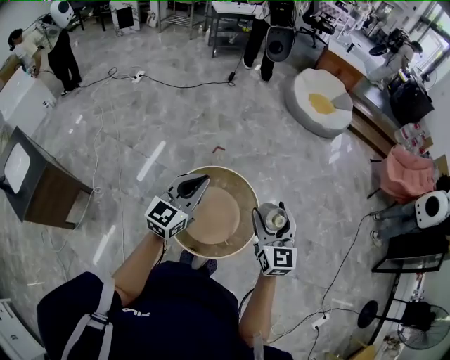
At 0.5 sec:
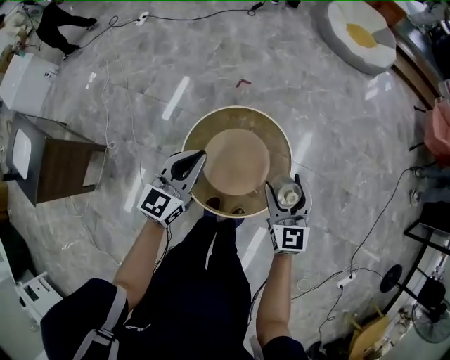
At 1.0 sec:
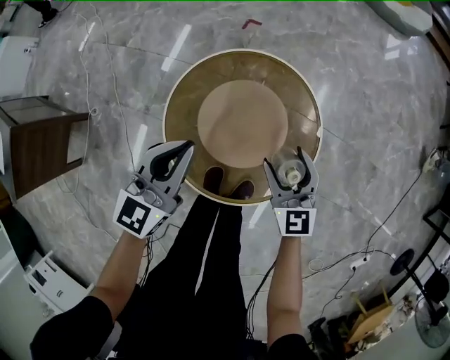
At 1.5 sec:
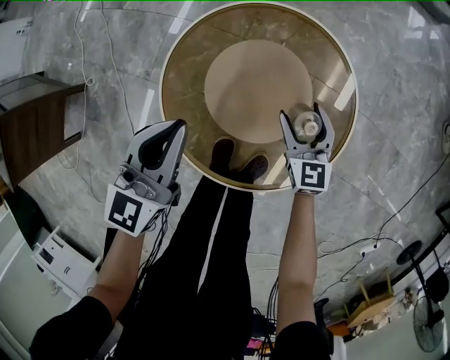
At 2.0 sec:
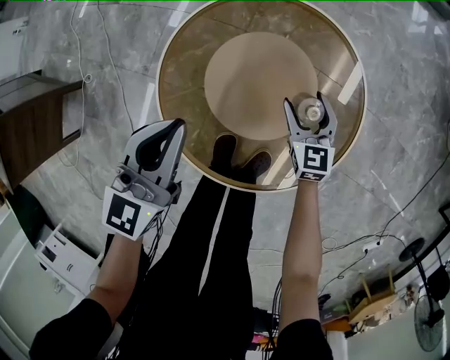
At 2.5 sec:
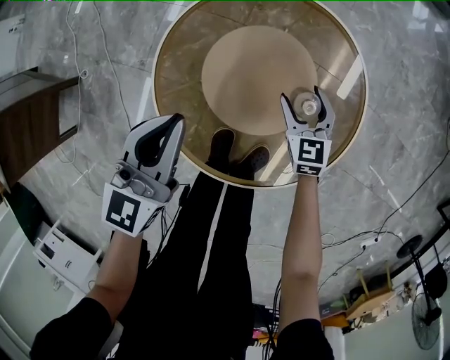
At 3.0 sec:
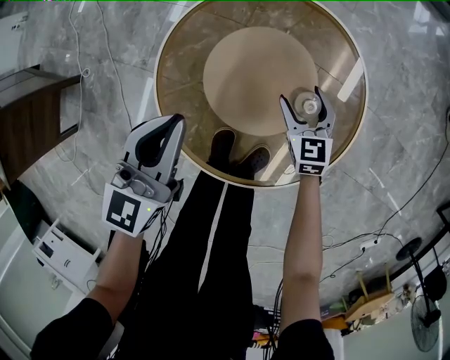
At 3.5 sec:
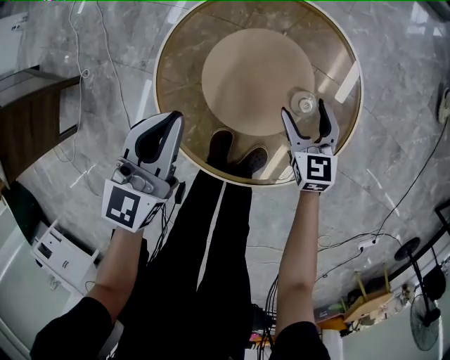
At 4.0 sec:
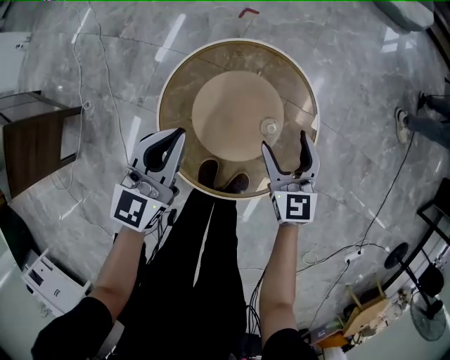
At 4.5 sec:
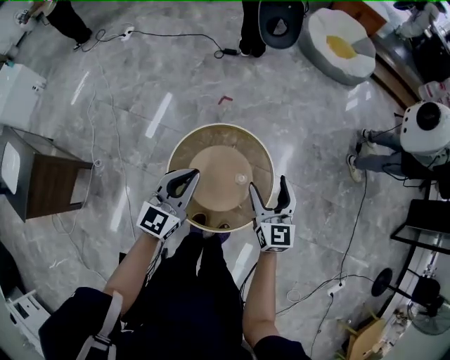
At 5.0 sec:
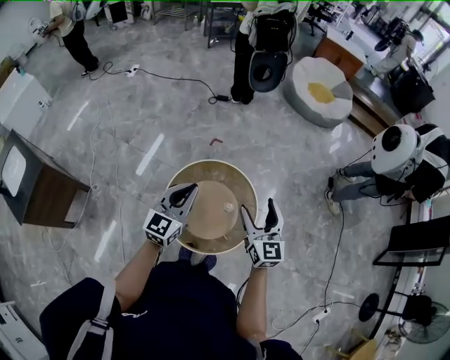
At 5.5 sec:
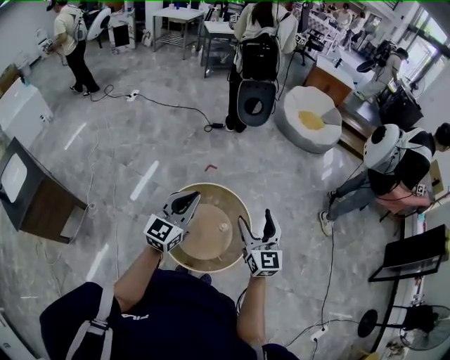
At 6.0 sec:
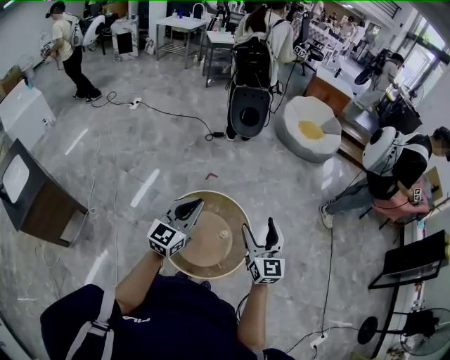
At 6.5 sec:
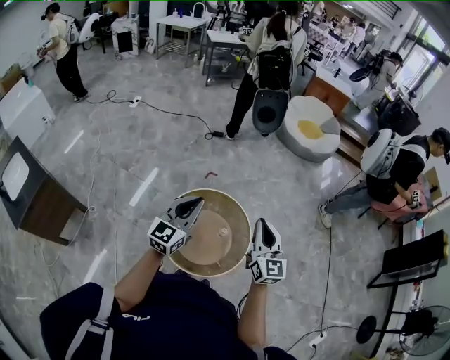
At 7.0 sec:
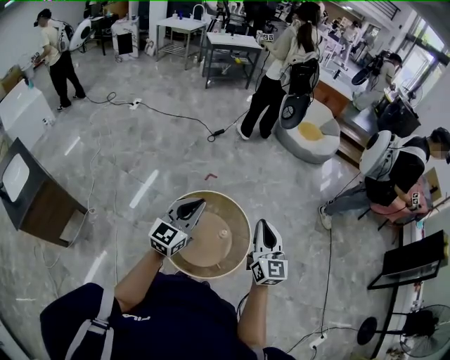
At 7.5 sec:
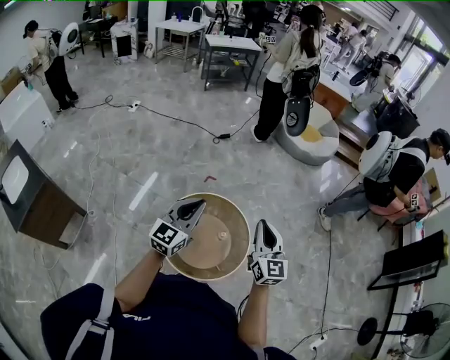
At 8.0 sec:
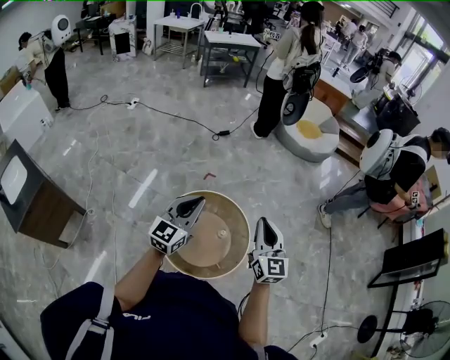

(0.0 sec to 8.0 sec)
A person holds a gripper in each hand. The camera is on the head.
0.0 sec - 2.0 sec: The two grippers go approximately 60 cm downward. The right gripper rotates about 20 degrees.
2.0 sec - 4.0 sec: The right gripper heads upward, covering approximately 20 cm; the left gripper heads upward, covering some 10 cm.
4.0 sec - 6.0 sec: The two grippers go roughly 40 cm upward. The right gripper swivels some 20 degrees.
6.0 sec - 8.0 sec: The right gripper closes up.

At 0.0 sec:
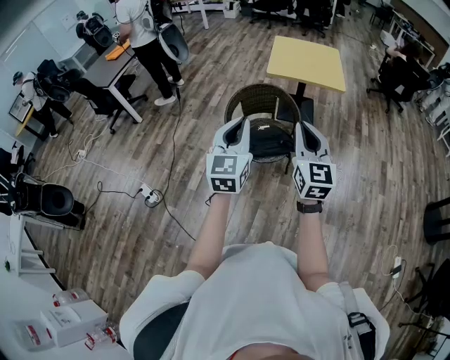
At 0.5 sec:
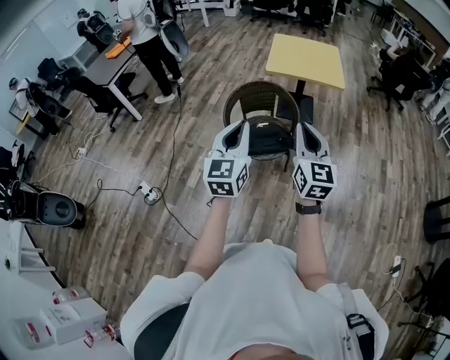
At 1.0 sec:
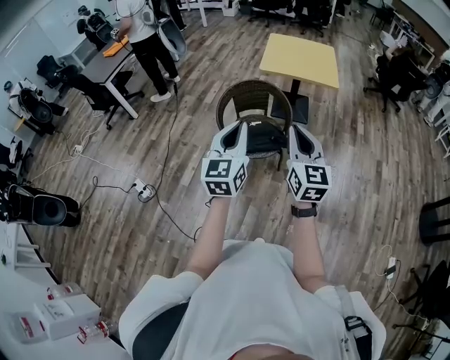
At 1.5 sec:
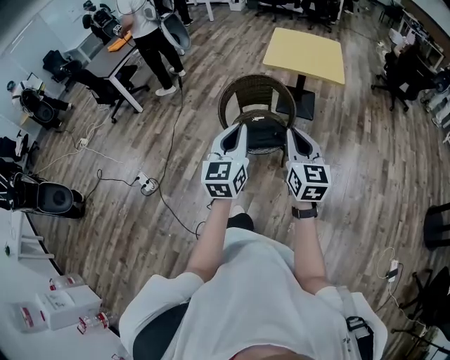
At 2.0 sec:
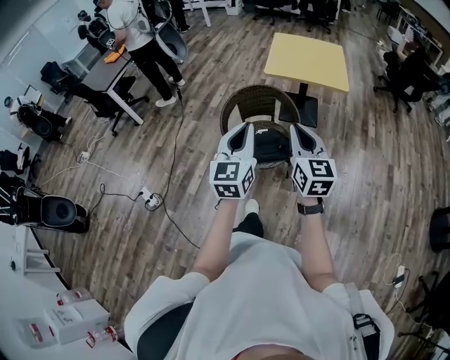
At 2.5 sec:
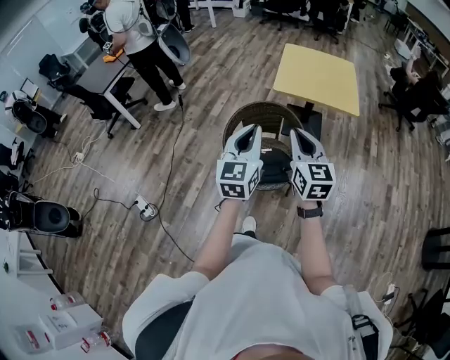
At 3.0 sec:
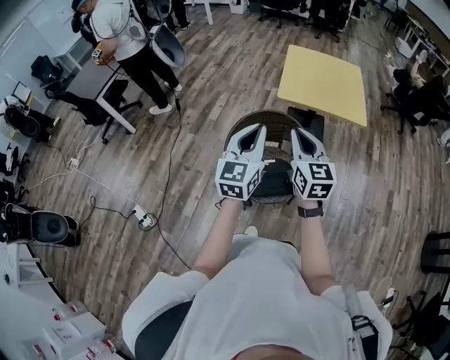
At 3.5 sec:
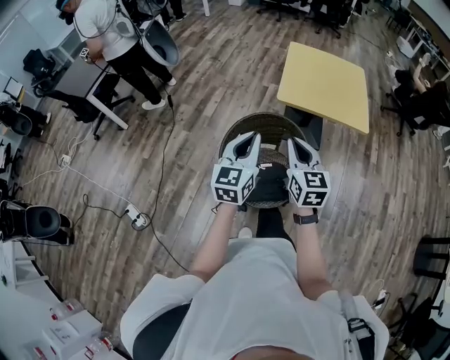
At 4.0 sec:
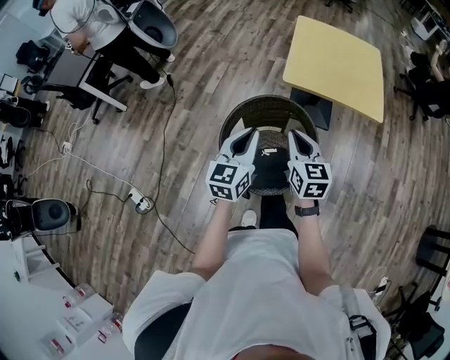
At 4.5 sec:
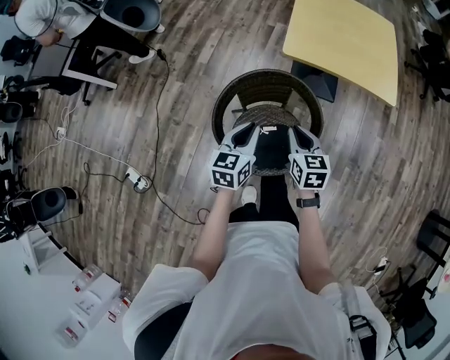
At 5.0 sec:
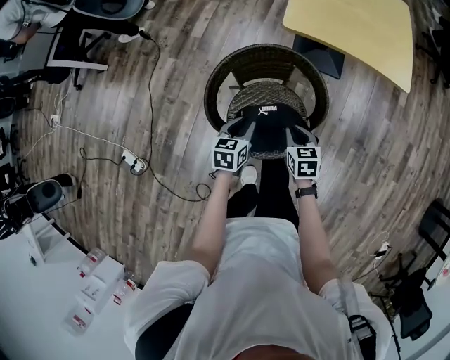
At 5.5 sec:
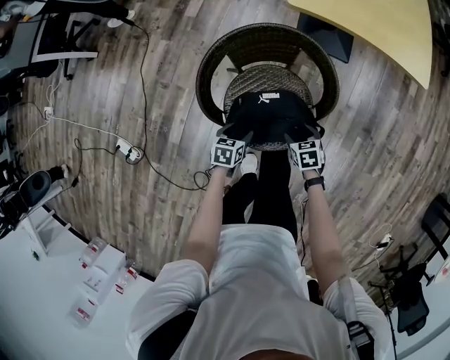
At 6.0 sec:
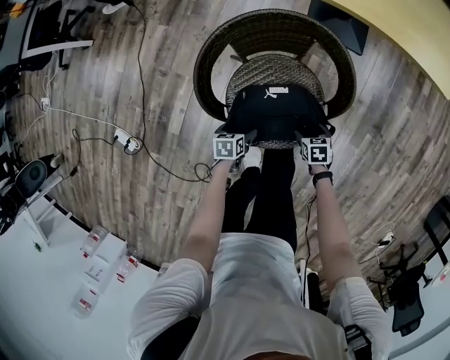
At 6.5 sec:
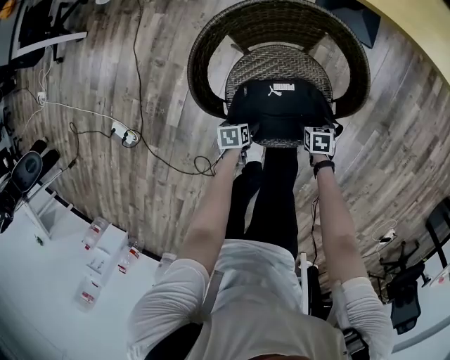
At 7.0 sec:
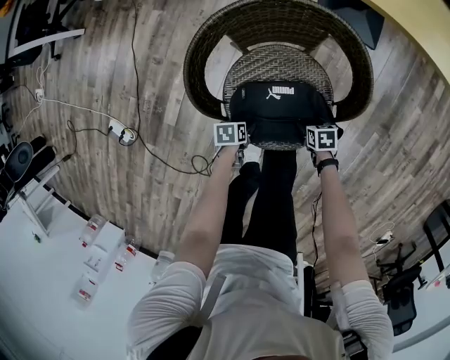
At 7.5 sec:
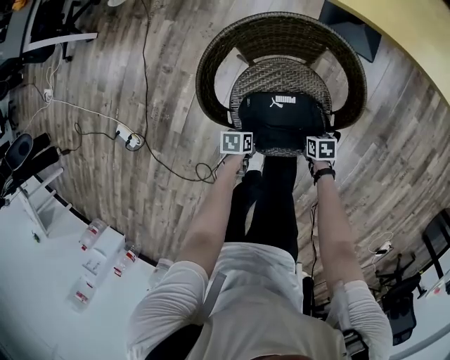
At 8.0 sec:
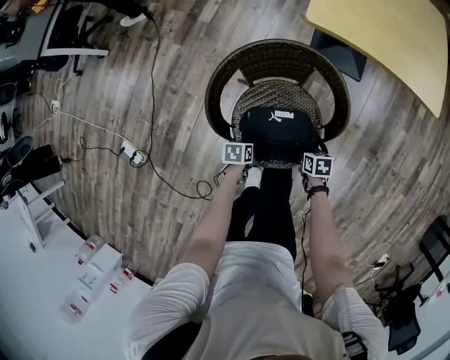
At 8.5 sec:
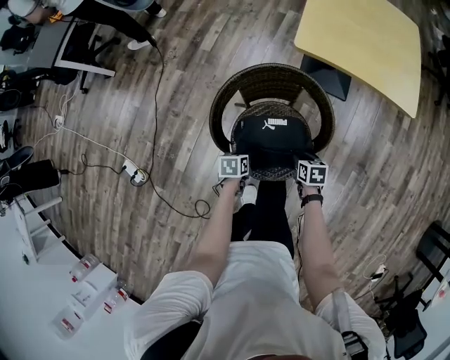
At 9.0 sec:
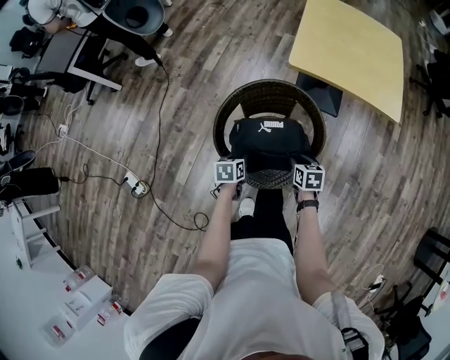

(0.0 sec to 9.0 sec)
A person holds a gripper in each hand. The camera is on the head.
0.0 sec - 2.0 sec: The right gripper travels forward and downward by roughly 10 cm, while the left gripper goes about 10 cm forward and to the right.
2.0 sec - 4.5 sec: Both grippers move forward and downward, about 50 cm. The left gripper changes its angle by about 30 degrees. The right gripper tilts its fingers some 30 degrees downward.
4.5 sec - 7.0 sec: Both grippers travel together downward, approximately 50 cm. The left gripper tilts its fingers some 40 degrees downward, and opens up. The right gripper tilts its fingers approximately 40 degrees downward, and opens its fingers.
7.0 sec - 9.0 sec: Both grippers travel together upward, roughly 30 cm. The left gripper turns by approximately 30 degrees, and closes. The right gripper rotates about 30 degrees, and closes its fingers.

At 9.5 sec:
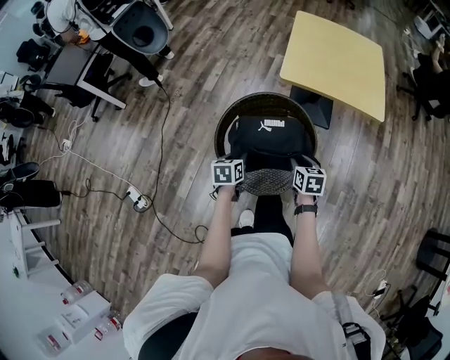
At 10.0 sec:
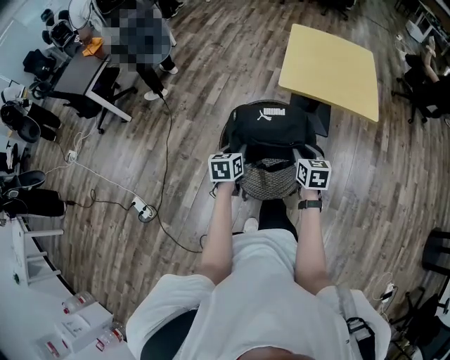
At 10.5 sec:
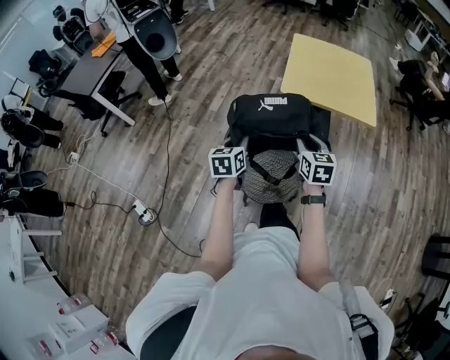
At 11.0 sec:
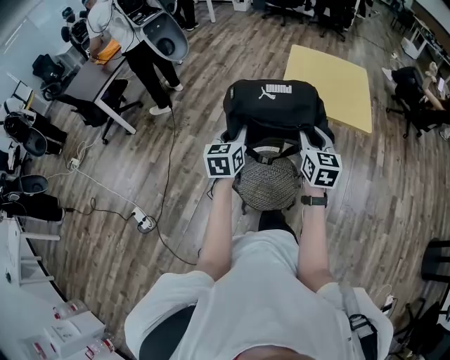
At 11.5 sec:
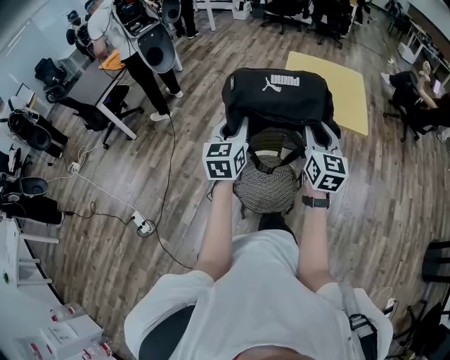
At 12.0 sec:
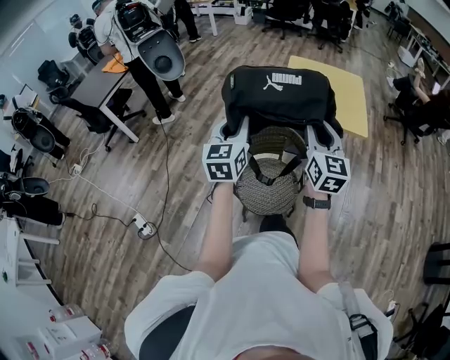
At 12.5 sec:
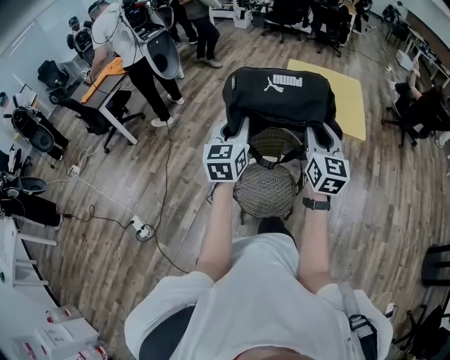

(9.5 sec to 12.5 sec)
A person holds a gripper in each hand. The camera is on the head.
9.5 sec - 11.0 sec: The two grippers go about 25 cm upward. The left gripper rotates roughly 30 degrees, while the right gripper points its fingers some 30 degrees further upward.
11.0 sec - 12.5 sec: The grippers both shift upward by about 10 cm.

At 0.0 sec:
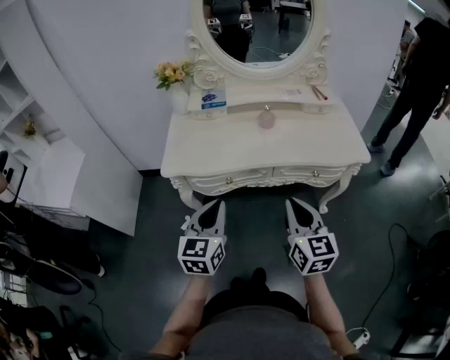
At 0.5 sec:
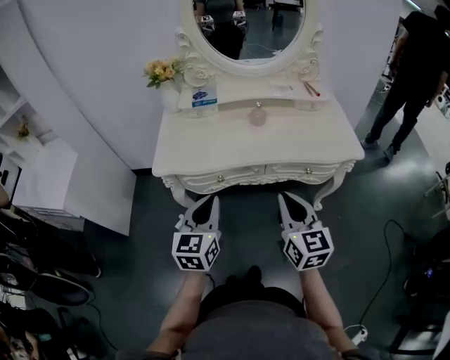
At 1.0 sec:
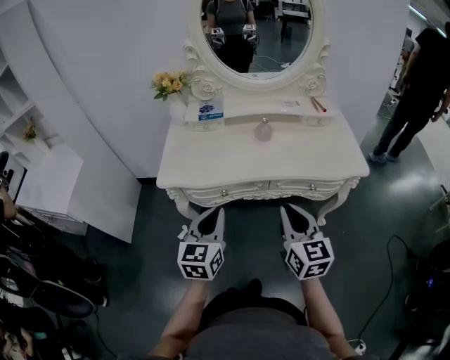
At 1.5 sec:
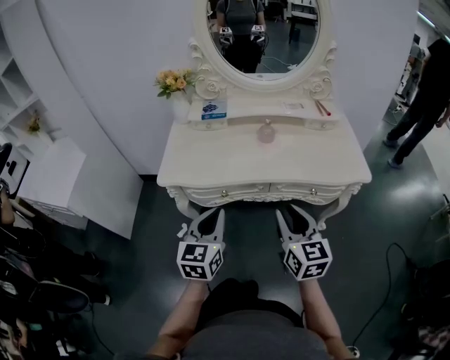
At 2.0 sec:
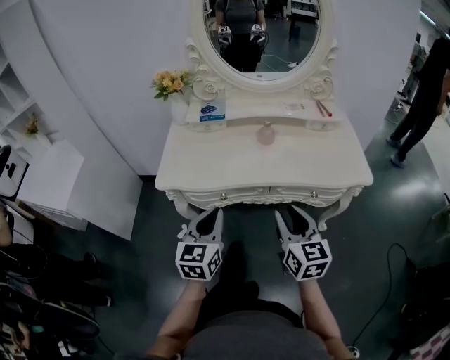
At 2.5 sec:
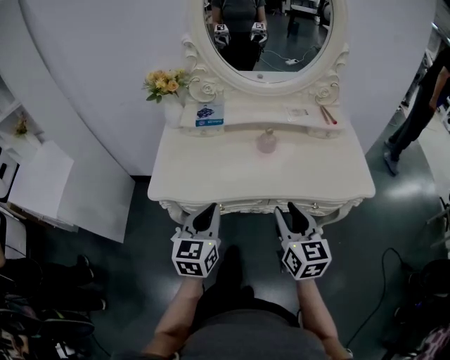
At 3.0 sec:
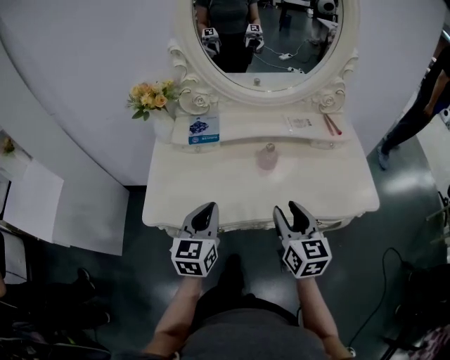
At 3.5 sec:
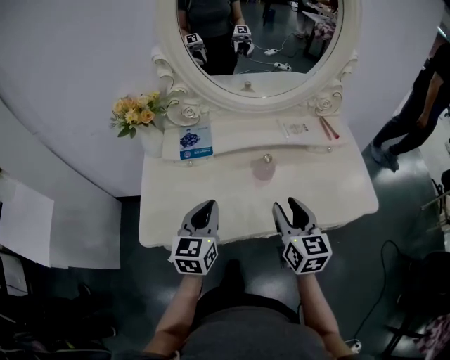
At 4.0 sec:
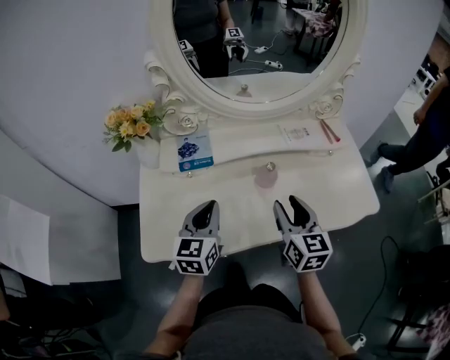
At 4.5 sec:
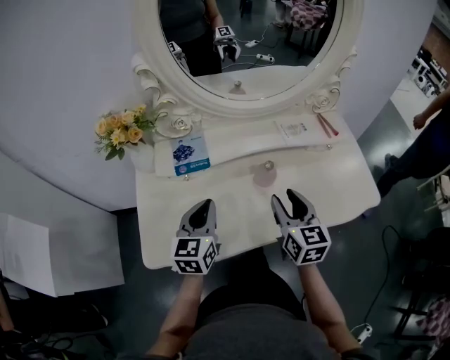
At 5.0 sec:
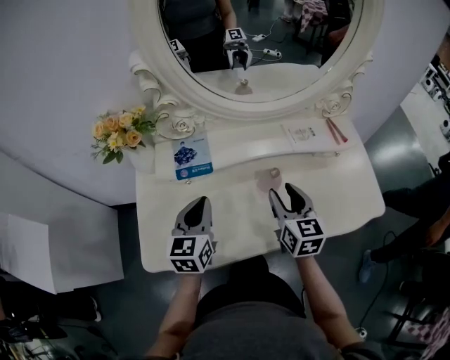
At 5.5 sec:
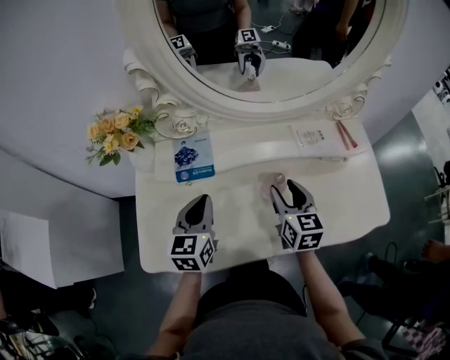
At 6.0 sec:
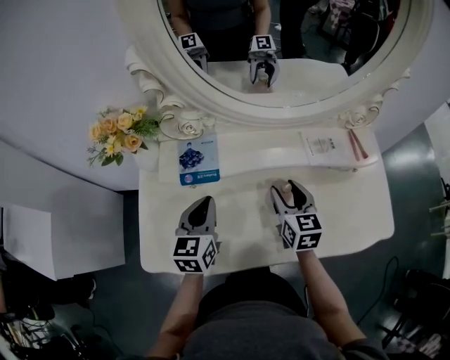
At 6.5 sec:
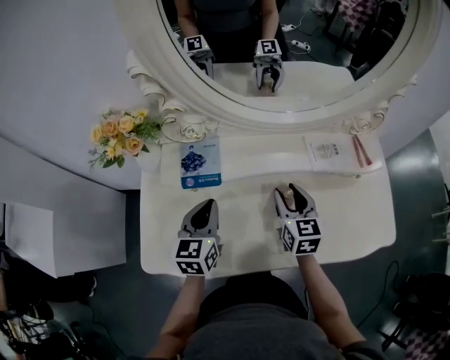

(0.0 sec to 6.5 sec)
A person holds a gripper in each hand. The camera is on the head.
0.0 sec - 2.0 sec: The grippers both shift forward by about 5 cm. The right gripper opens.
2.0 sec - 4.5 sec: Both grippers move forward, about 30 cm.
4.5 sec - 6.5 sec: The right gripper moves forward and downward, approximately 15 cm. The left gripper travels forward by some 5 cm.
